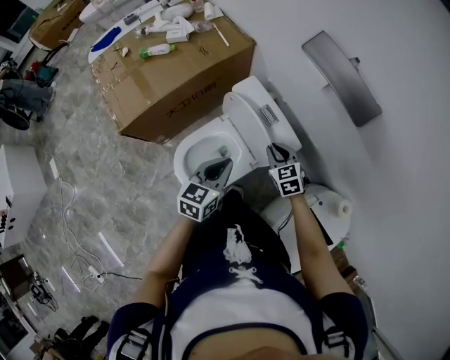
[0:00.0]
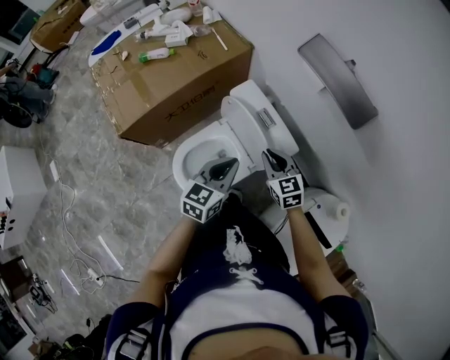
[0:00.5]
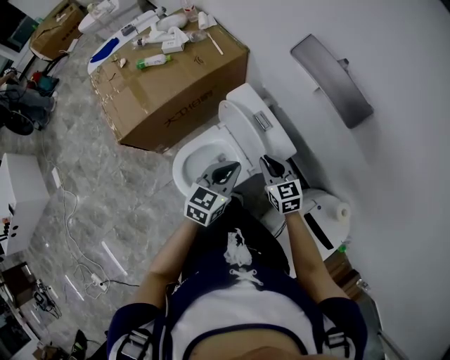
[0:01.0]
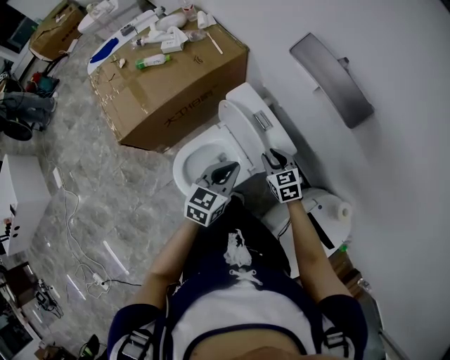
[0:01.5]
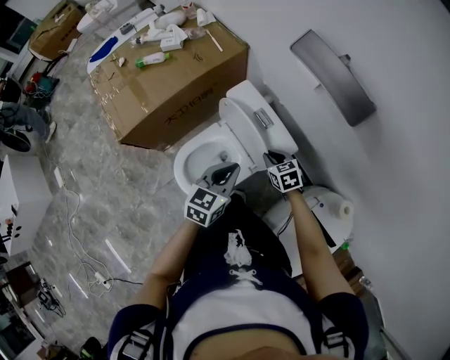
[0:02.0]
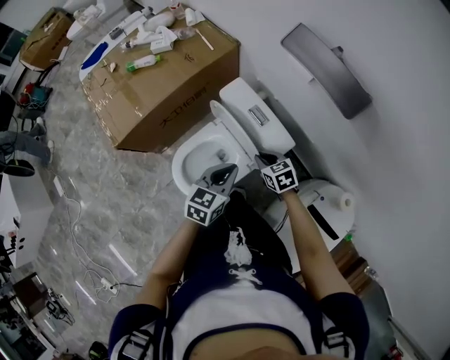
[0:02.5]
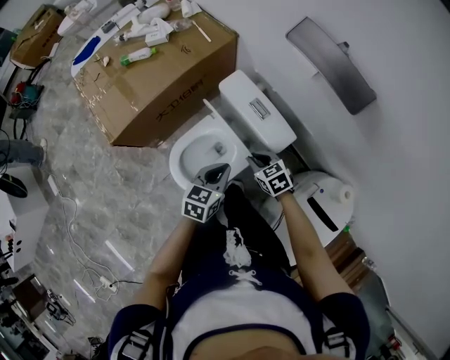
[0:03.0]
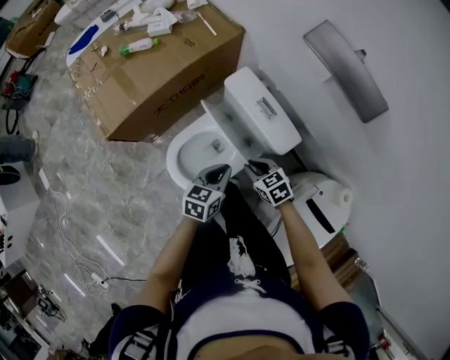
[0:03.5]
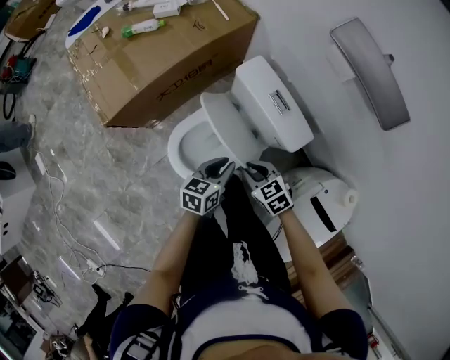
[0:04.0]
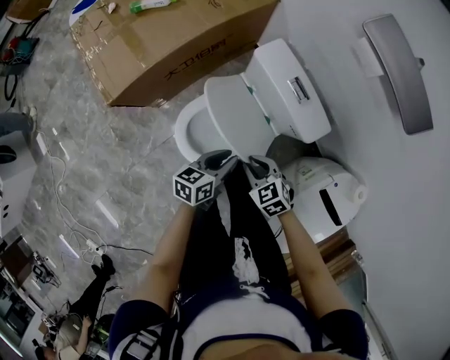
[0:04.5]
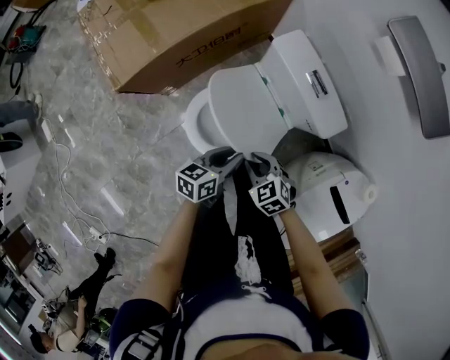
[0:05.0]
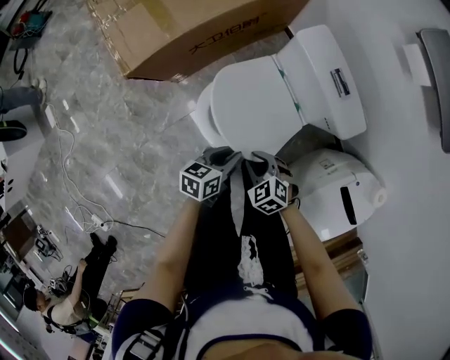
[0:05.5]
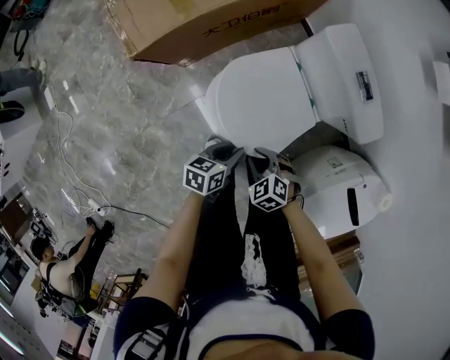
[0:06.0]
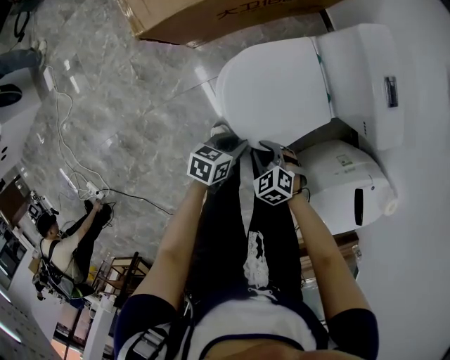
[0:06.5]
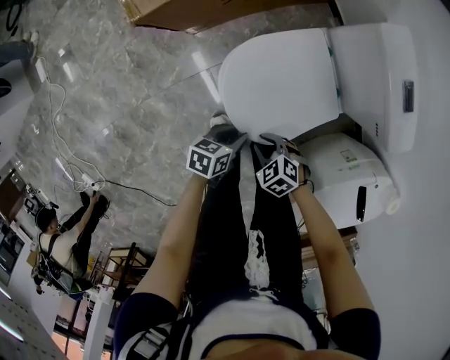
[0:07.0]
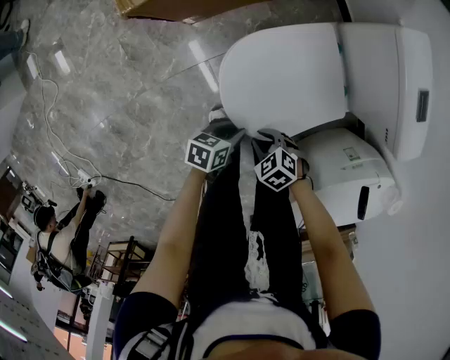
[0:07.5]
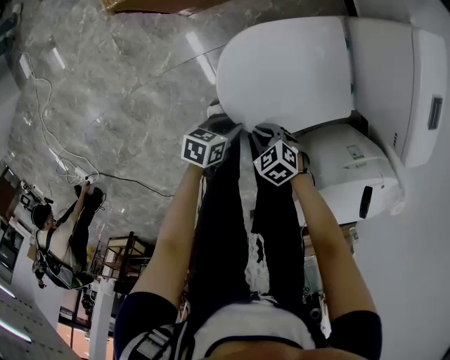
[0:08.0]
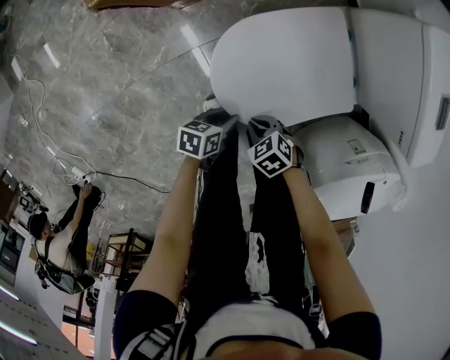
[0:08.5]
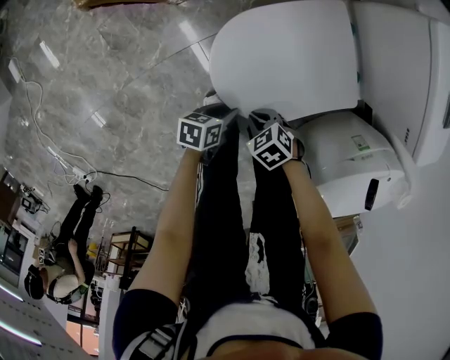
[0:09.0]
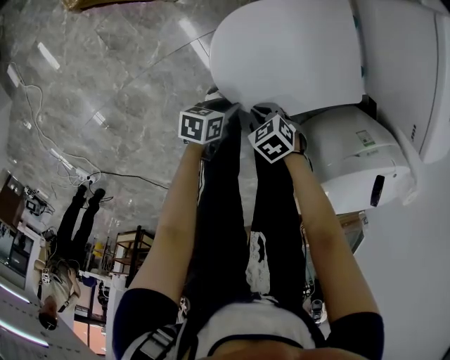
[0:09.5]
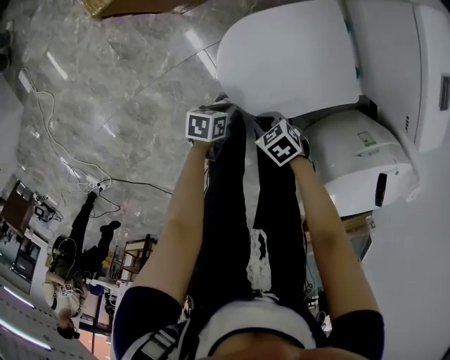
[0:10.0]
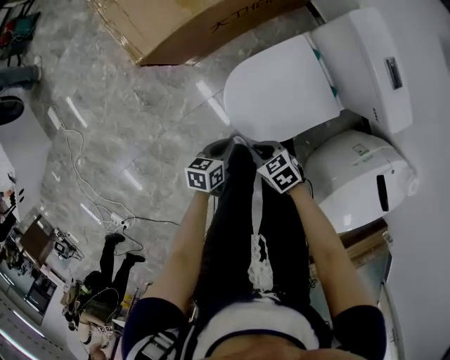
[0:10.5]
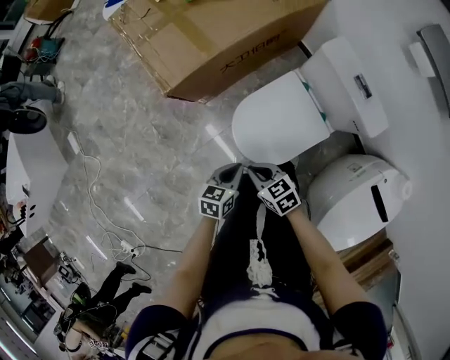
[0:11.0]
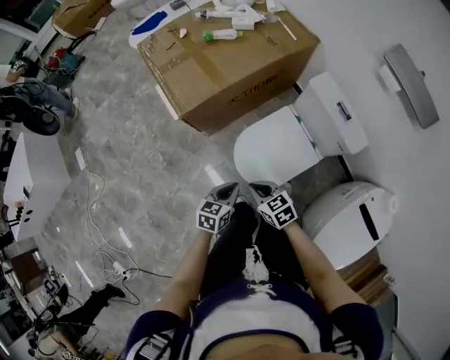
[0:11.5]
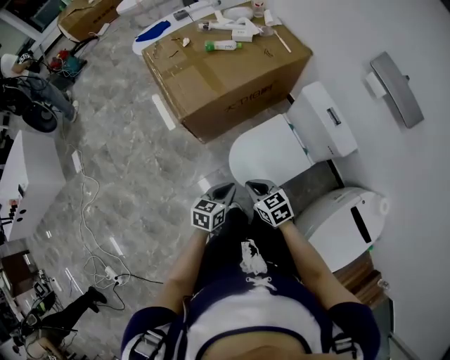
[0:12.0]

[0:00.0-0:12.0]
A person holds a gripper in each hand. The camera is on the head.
0:00.0 to 0:02.0: There are only small adjustments of the grippers.
0:02.0 to 0:04.0: The right gripper moves to the left and backward, approximately 15 cm. The left gripper heads downward and to the left, covering roughly 15 cm, and changes its angle by some 20 degrees.
0:04.0 to 0:06.0: Both grippers move to the left, downward and backward, approximately 20 cm. The right gripper swivels some 30 degrees.
0:06.0 to 0:08.0: Both grippers travel together downward, roughly 15 cm. The right gripper changes its angle by approximately 20 degrees.
0:08.0 to 0:10.0: The left gripper moves downward, roughly 5 cm, and closes its fingers.
0:10.0 to 0:12.0: The grippers both shift upward by some 35 cm. The right gripper rotates approximately 40 degrees, while the left gripper changes its angle by some 40 degrees.

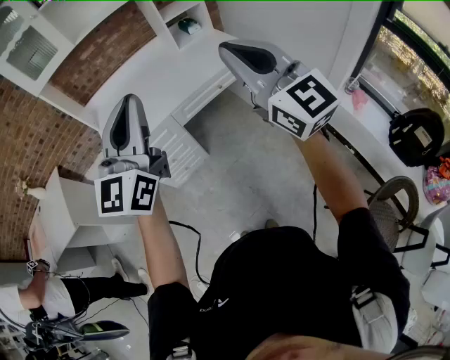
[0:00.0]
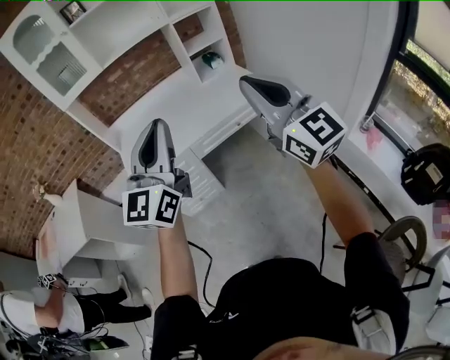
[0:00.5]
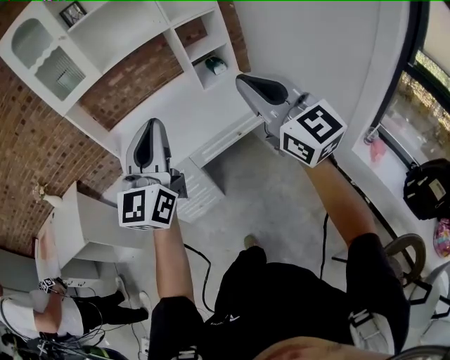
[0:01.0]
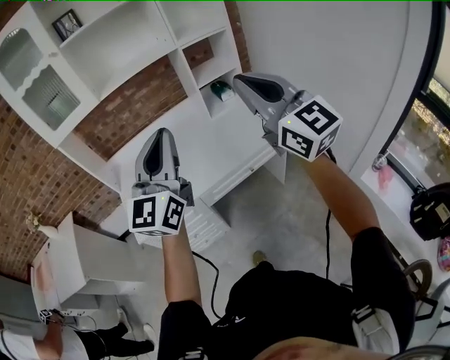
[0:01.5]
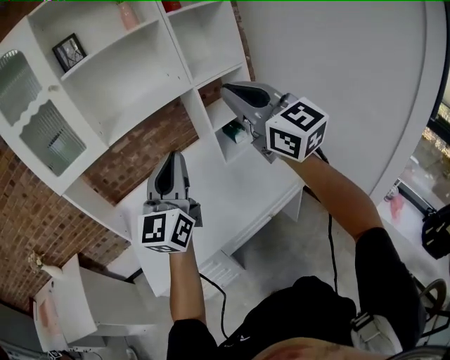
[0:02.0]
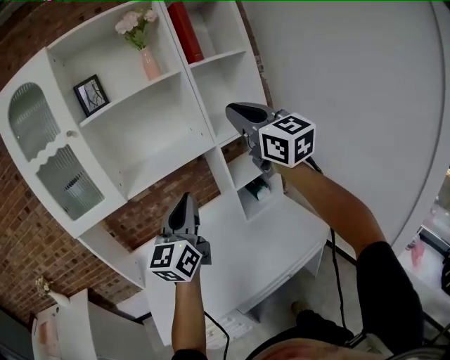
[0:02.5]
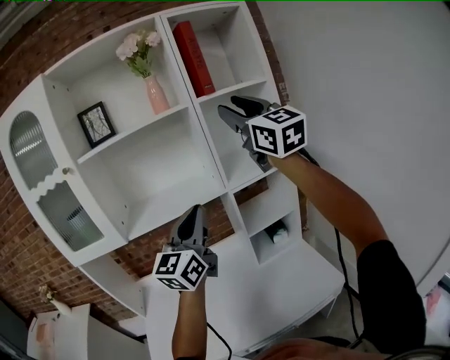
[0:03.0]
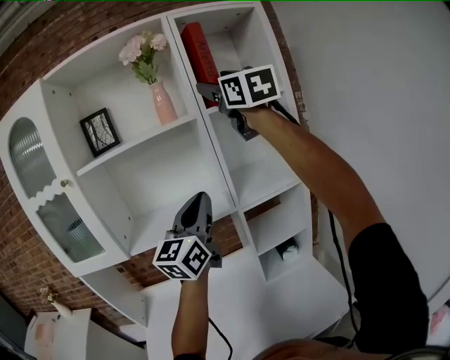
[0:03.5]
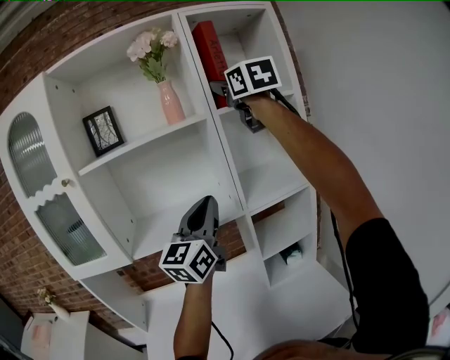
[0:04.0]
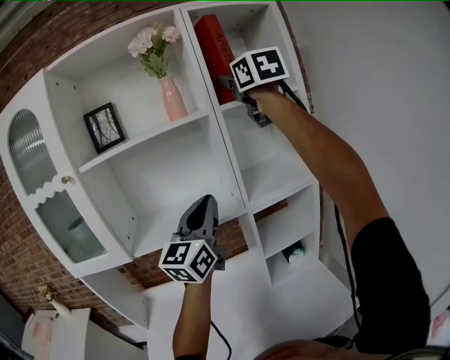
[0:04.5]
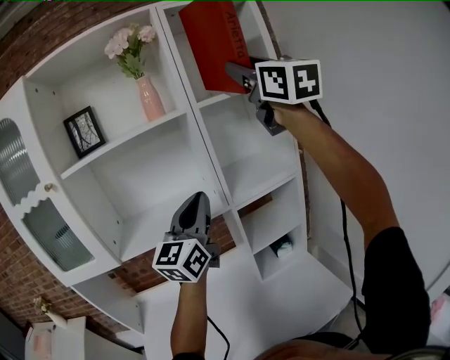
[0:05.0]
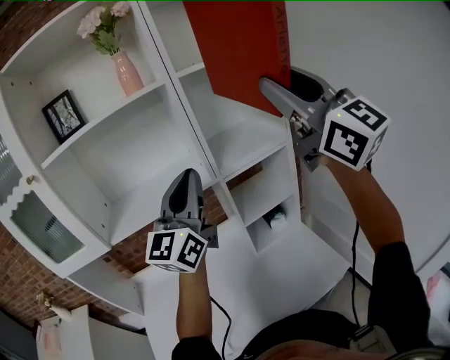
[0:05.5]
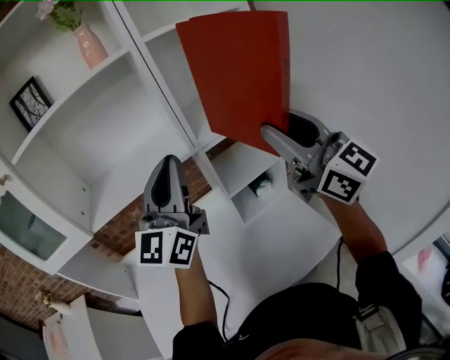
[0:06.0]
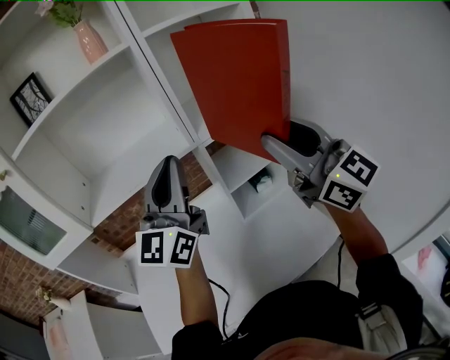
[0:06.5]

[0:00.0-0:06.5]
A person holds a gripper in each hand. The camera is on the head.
0:00.0 to 0:02.0: The pair of grippers is taken forward, approximately 40 cm.
0:02.0 to 0:04.5: The left gripper shifts roughly 35 cm forward. Meanwhile the right gripper heads forward and upward, covering approximately 50 cm, and opens.
0:04.5 to 0:06.5: The left gripper shifts by some 5 cm; the right gripper moves downward and backward, roughly 35 cm.

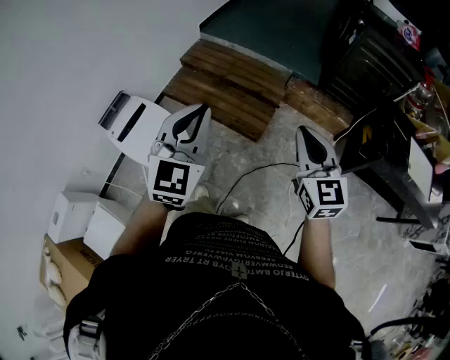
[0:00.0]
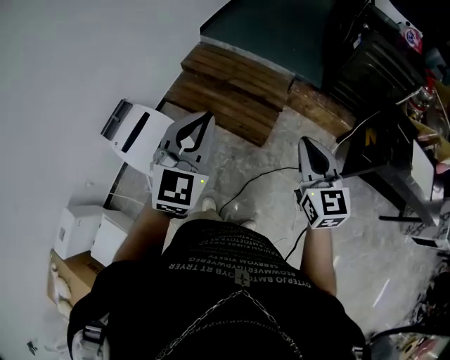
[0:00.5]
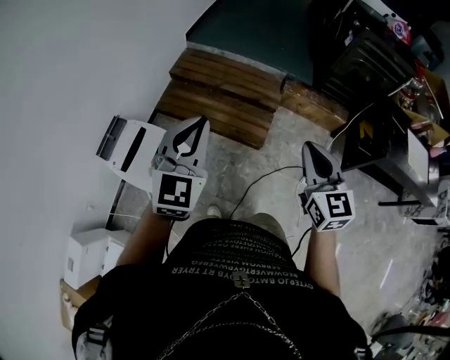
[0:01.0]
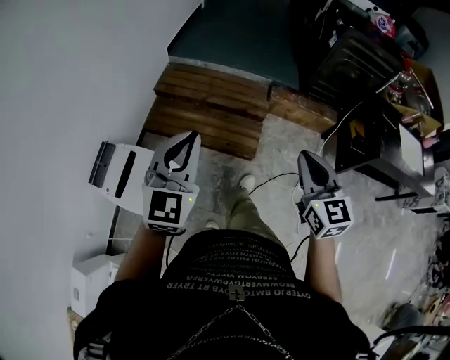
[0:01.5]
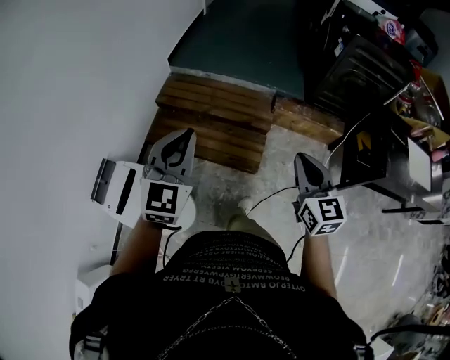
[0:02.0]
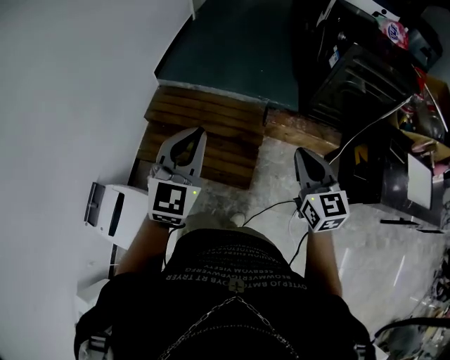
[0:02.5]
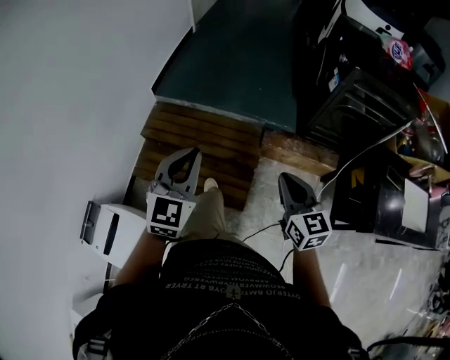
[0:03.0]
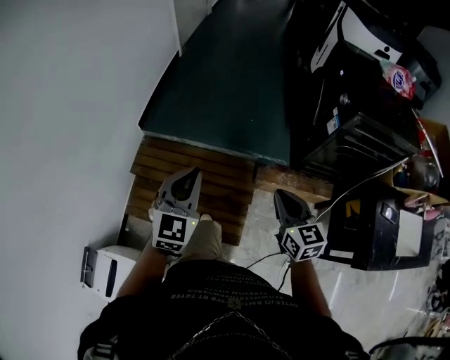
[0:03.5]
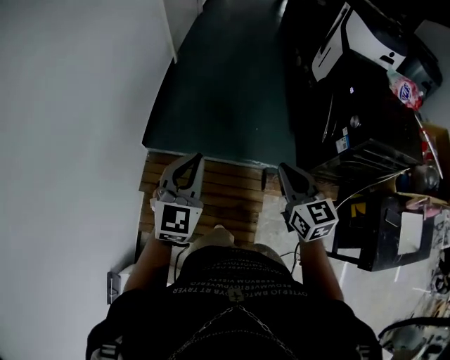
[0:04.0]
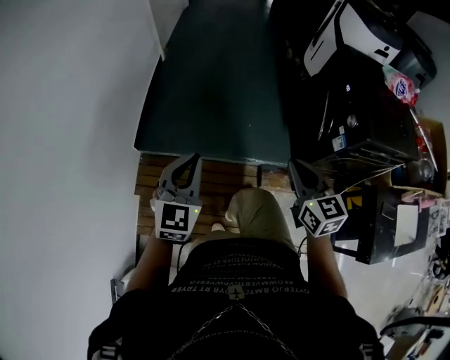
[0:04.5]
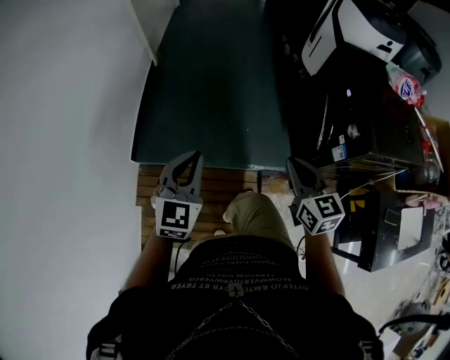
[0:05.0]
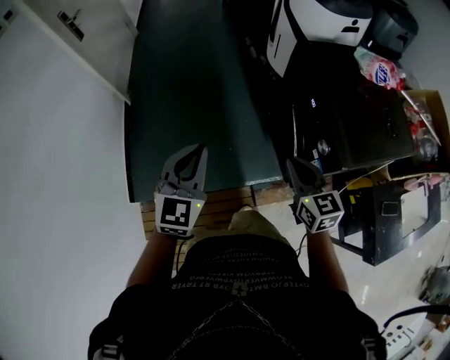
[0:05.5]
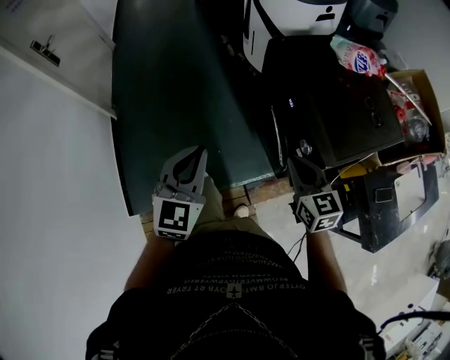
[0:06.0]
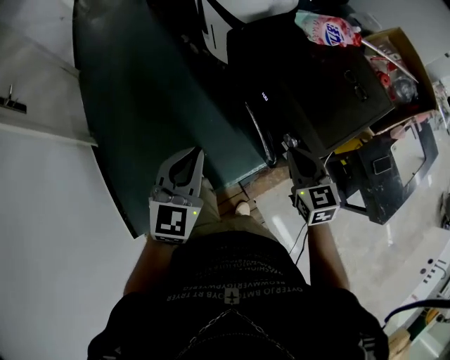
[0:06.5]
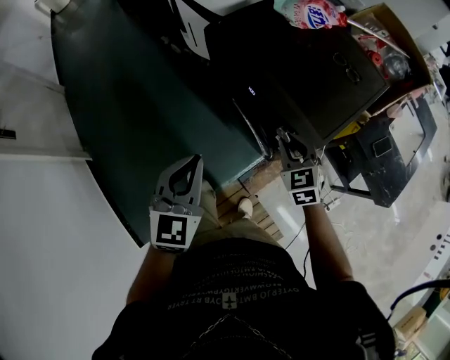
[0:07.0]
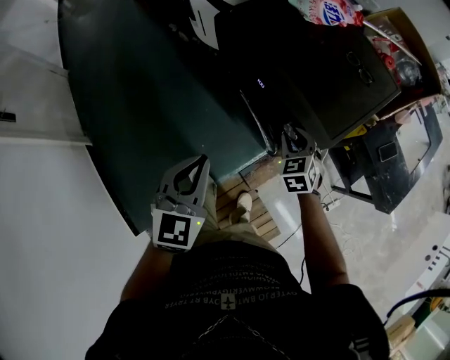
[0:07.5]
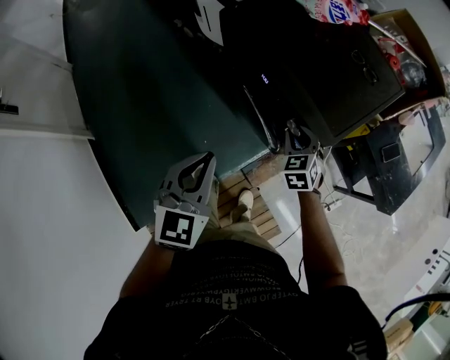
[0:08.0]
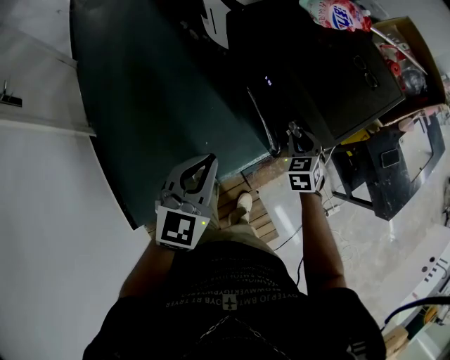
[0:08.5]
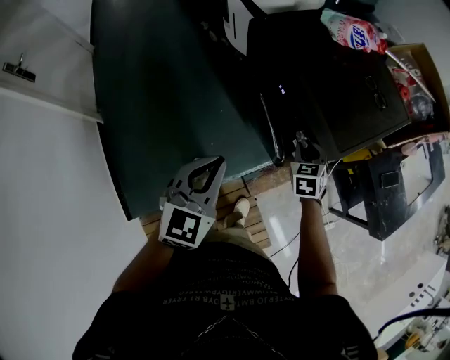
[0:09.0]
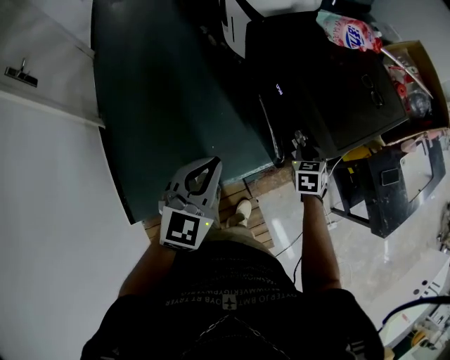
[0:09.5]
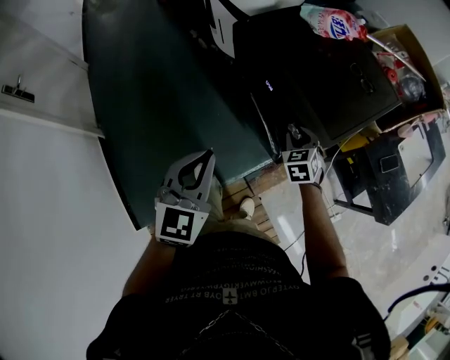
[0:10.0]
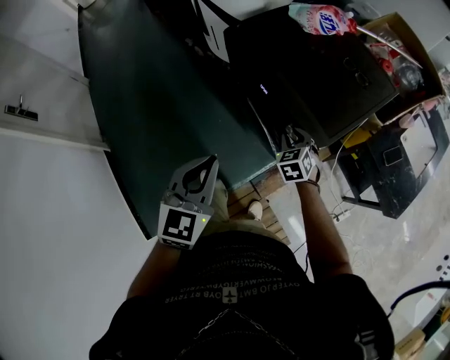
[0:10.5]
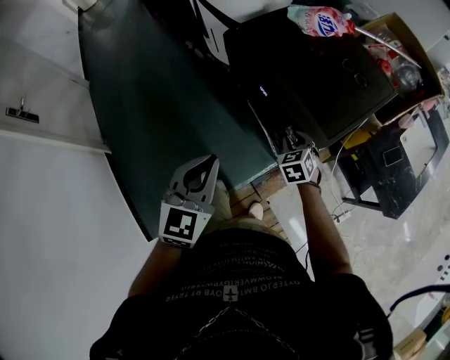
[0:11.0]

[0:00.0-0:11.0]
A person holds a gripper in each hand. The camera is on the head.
0:00.0 to 0:02.0: The left gripper moves forward and to the left, approximately 30 cm. Meanwhile the right gripper goes roughly 20 cm forward.
0:02.0 to 0:03.5: The two grippers travel together, forward, some 50 cm.
0:03.5 to 0:05.5: Both grippers are carried forward, approximately 50 cm. The left gripper rotates roughly 20 degrees.
0:05.5 to 0:07.5: The right gripper ends up some 25 cm from where it was, turns by roughly 40 degrees, and opens up, while the left gripper moves some 20 cm, and rotates roughly 30 degrees.
0:07.5 to 0:09.0: The grippers stay close to where they were, moving slightly.
0:09.0 to 0:11.0: The grippers move only a little.
